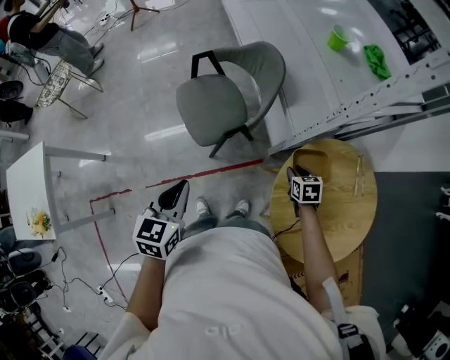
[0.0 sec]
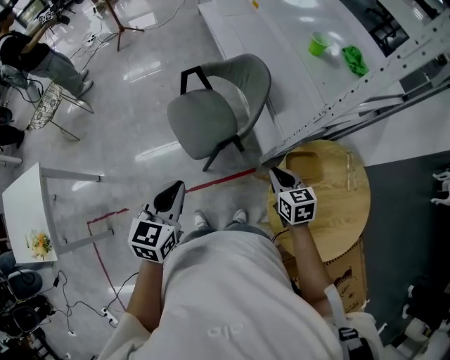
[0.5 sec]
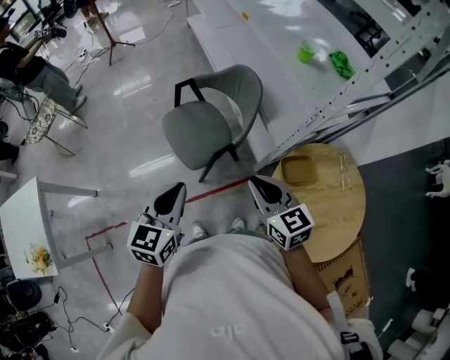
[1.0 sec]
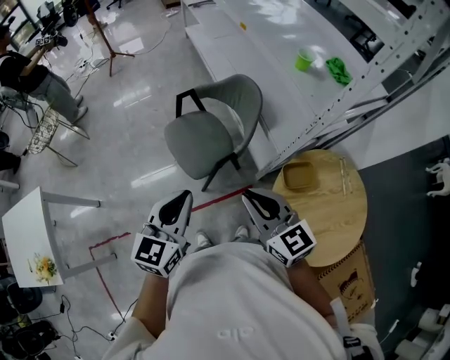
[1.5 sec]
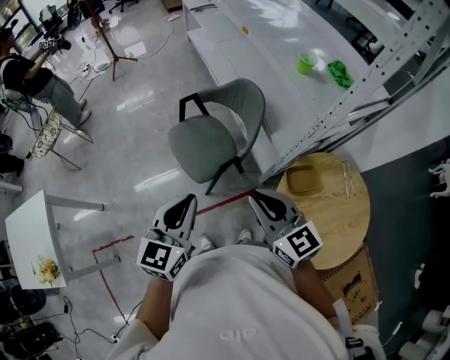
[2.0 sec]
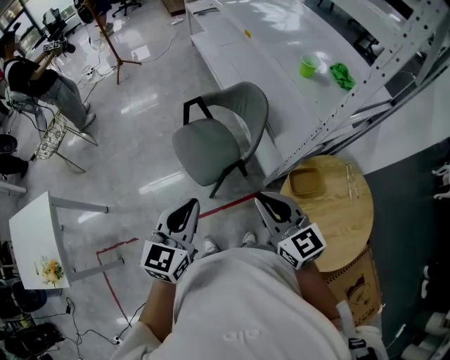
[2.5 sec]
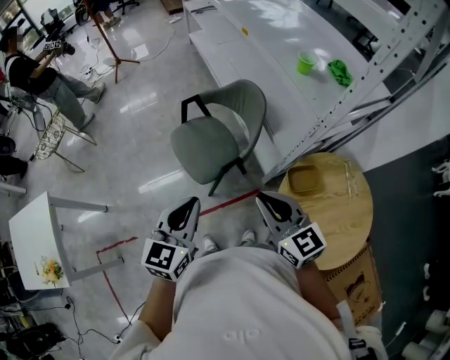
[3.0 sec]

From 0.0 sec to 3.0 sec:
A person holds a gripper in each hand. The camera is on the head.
From 0.0 sec to 1.5 sec: The right gripper heads upward and to the left, covering roughly 40 cm, tilts its fingers about 40 degrees upward, and closes its fingers; the left gripper is displaced upward by some 10 cm, and turns by some 20 degrees.
From 1.5 sec to 3.0 sec: The grippers move only a little.

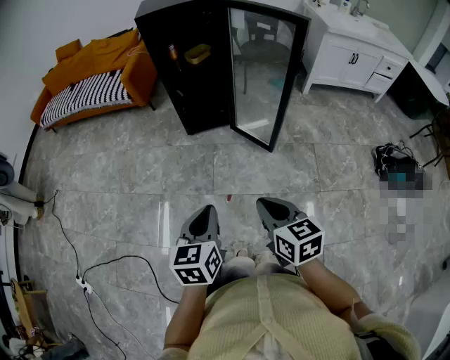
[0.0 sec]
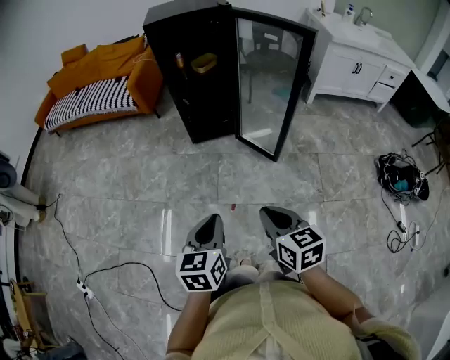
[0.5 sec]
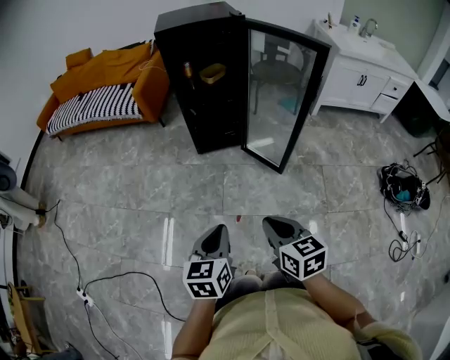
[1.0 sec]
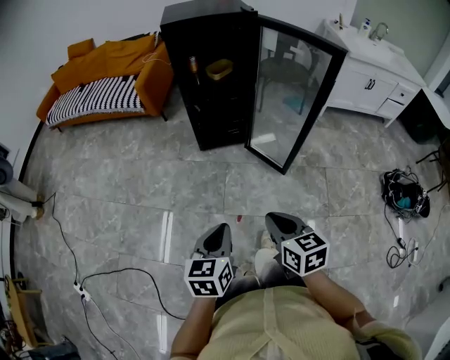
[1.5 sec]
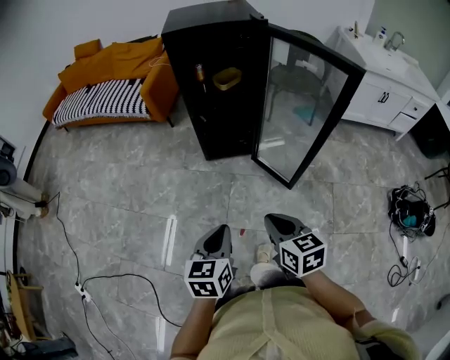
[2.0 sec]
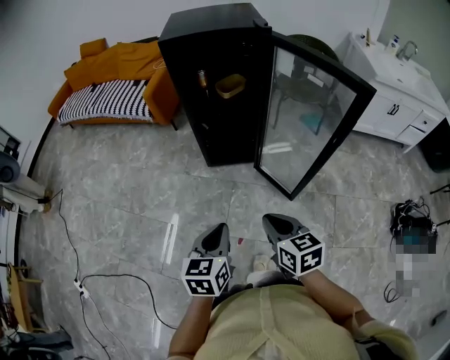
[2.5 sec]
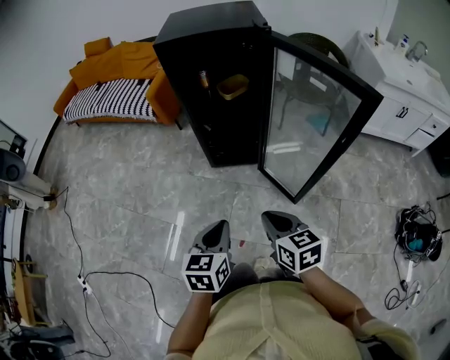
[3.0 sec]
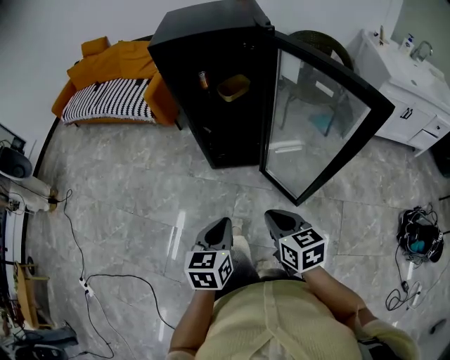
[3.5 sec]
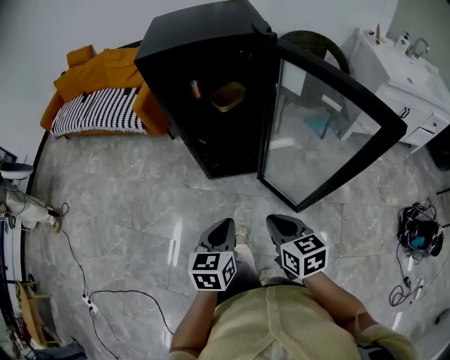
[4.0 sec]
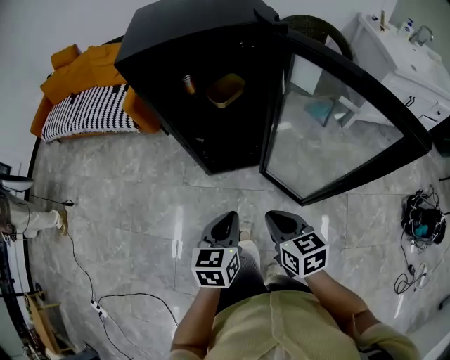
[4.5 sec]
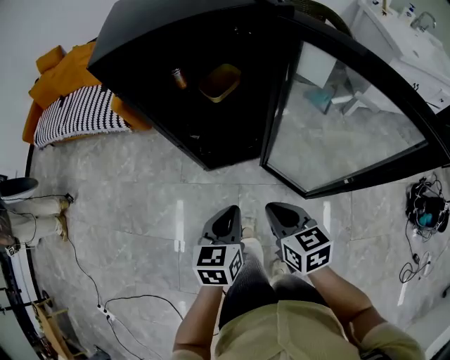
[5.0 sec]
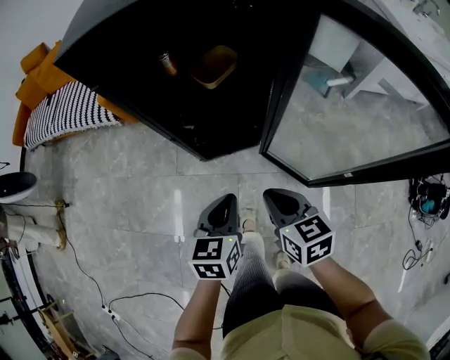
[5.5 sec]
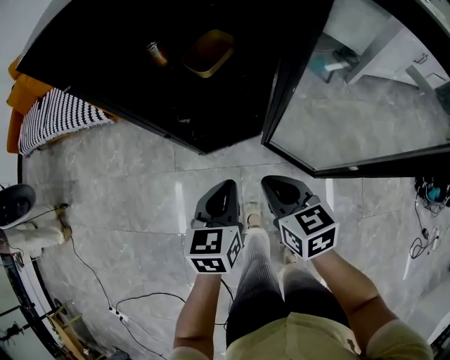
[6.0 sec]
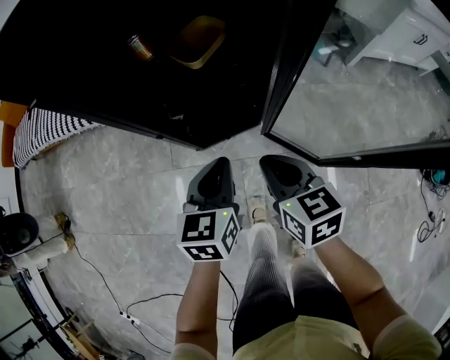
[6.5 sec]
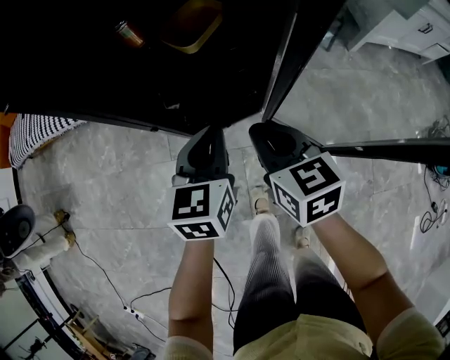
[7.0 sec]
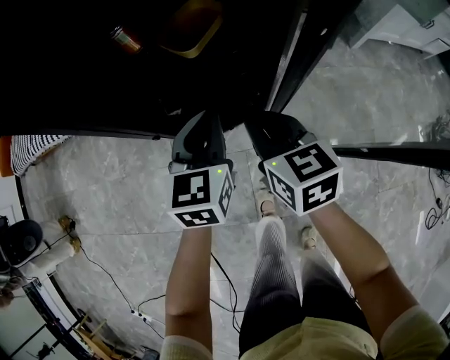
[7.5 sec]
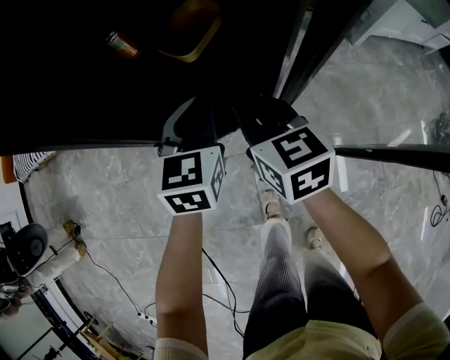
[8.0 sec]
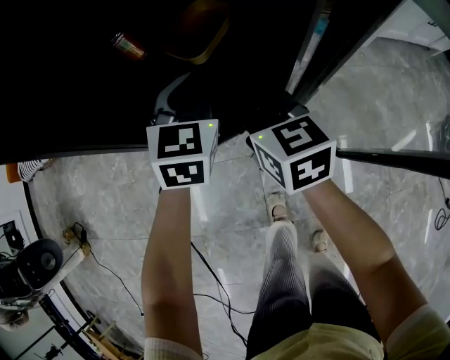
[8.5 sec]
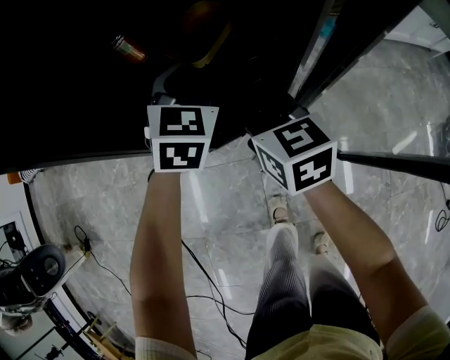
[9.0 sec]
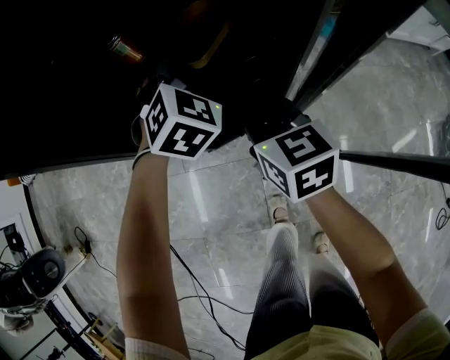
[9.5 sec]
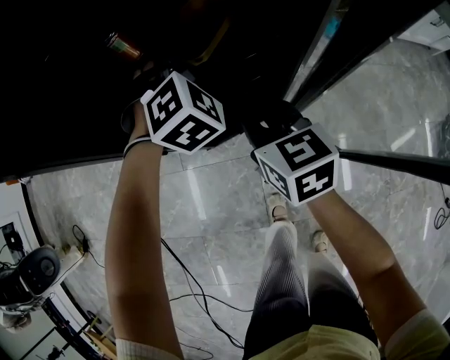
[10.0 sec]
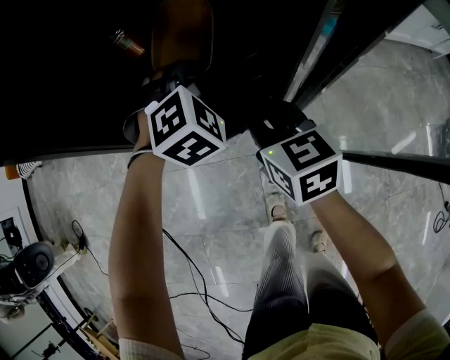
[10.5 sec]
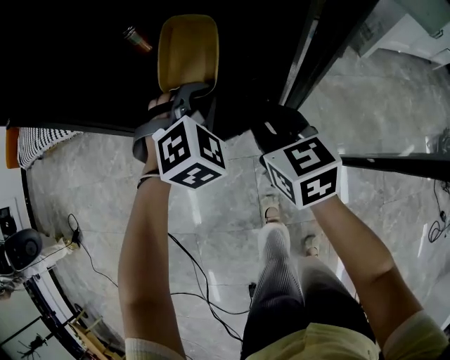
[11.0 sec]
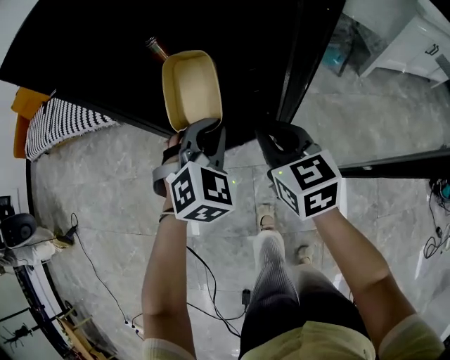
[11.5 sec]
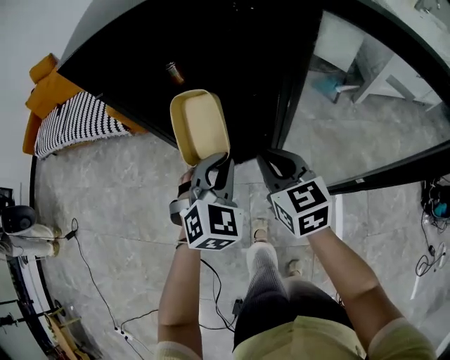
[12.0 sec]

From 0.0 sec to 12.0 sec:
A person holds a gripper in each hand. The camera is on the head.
From 0.0 sec to 2.0 sec: The grippers both shift forward by approximately 15 cm.
From 2.0 sec to 4.0 sec: Both grippers travel together forward, roughly 20 cm.
From 4.0 sec to 6.0 sec: Both grippers travel together forward and downward, about 20 cm.
From 6.0 sec to 8.0 sec: Both grippers move forward, about 20 cm.
From 8.0 sec to 10.0 sec: The left gripper travels forward by some 10 cm, twists some 60 degrees clockwise, seen from behind, and opens.
From 10.0 sec to 12.0 sec: The right gripper heads backward and upward, covering about 15 cm. Meanwhile the left gripper heads backward and upward, covering approximately 25 cm, turns by roughly 30 degrees, and closes up.

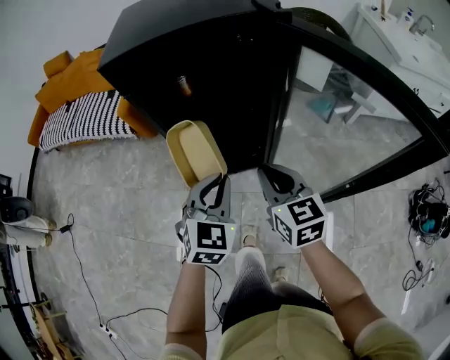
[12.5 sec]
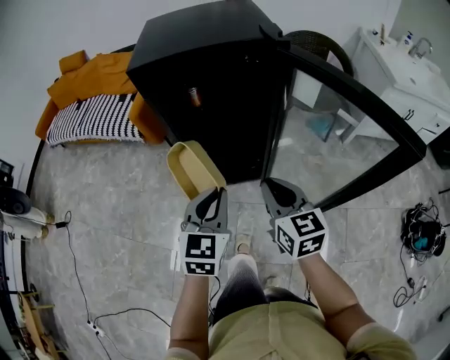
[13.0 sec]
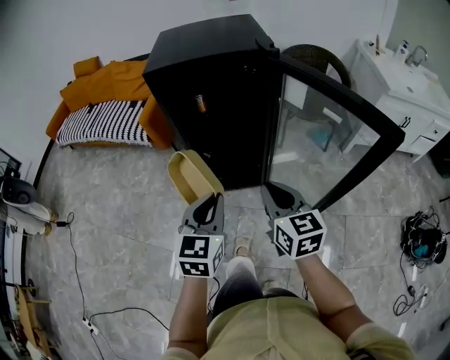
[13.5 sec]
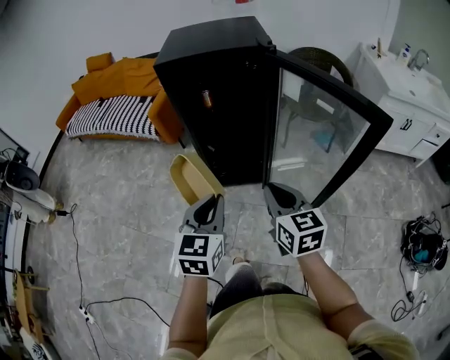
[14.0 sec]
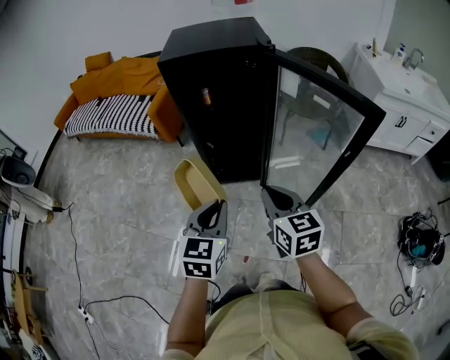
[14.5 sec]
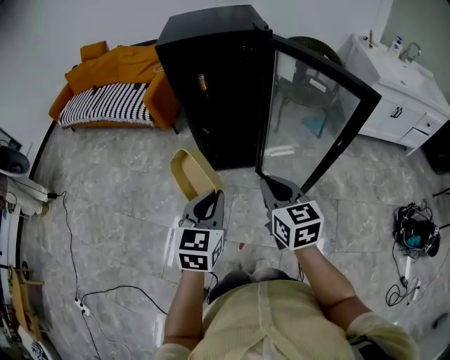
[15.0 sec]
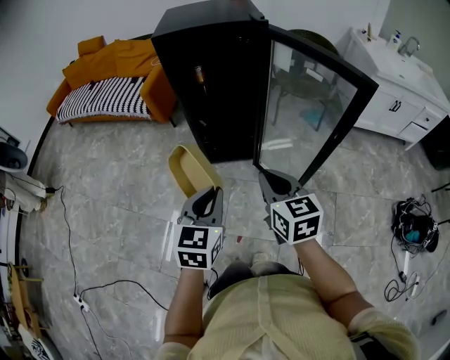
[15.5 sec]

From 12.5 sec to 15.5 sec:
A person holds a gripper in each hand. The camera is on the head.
From 12.5 sec to 14.0 sec: The grippers both shift backward and upward by some 15 cm. The left gripper rotates about 20 degrees.
From 14.0 sec to 15.5 sec: Both grippers travel together backward, about 10 cm.

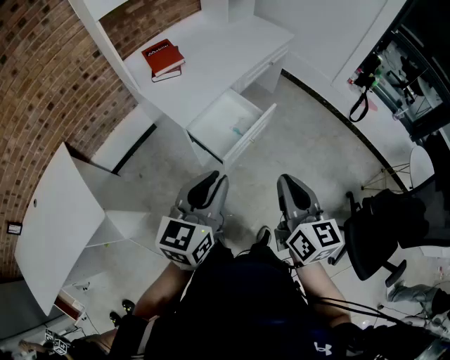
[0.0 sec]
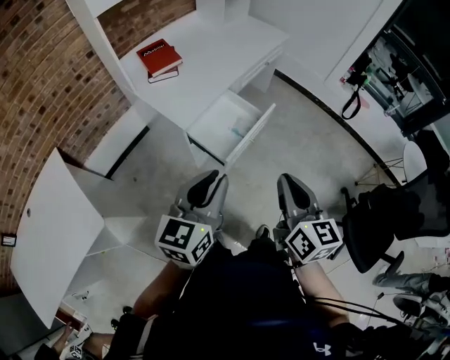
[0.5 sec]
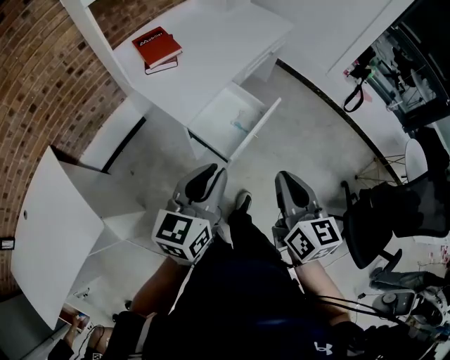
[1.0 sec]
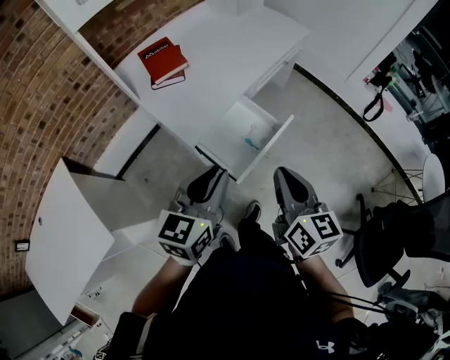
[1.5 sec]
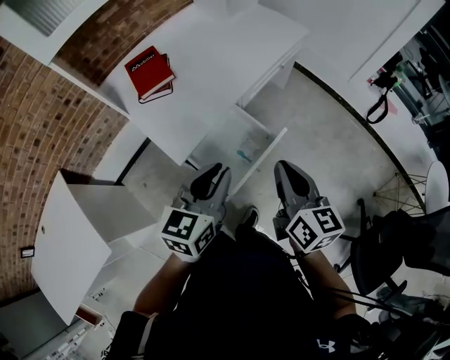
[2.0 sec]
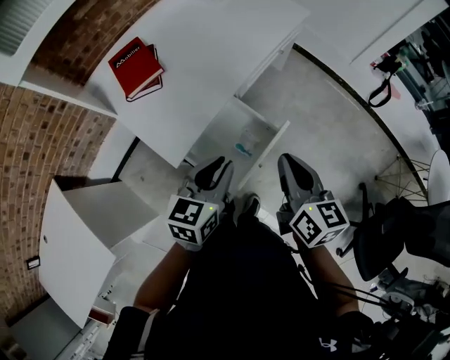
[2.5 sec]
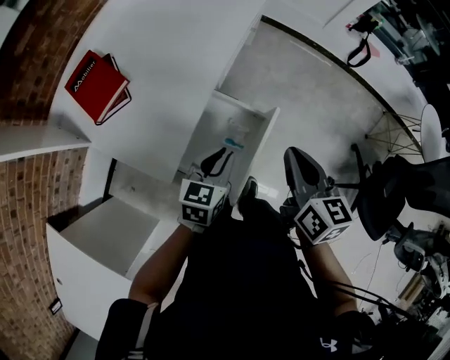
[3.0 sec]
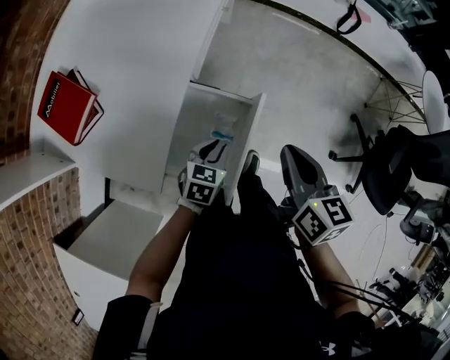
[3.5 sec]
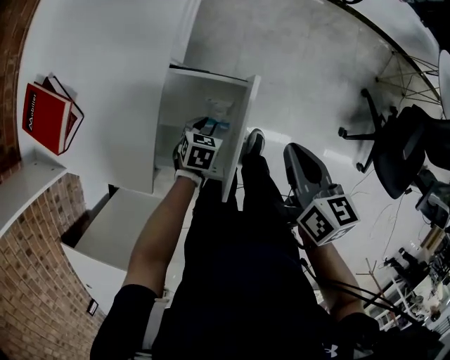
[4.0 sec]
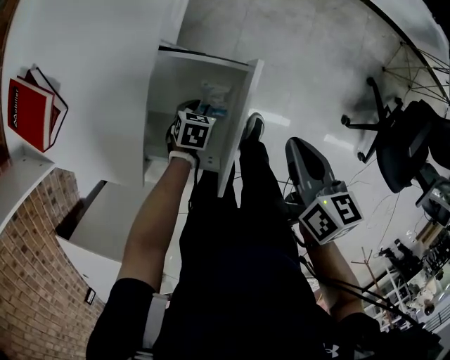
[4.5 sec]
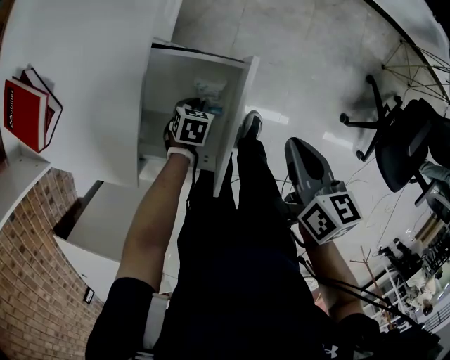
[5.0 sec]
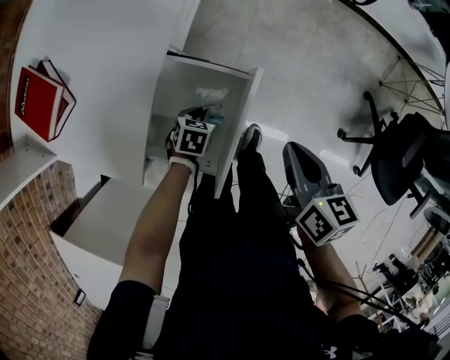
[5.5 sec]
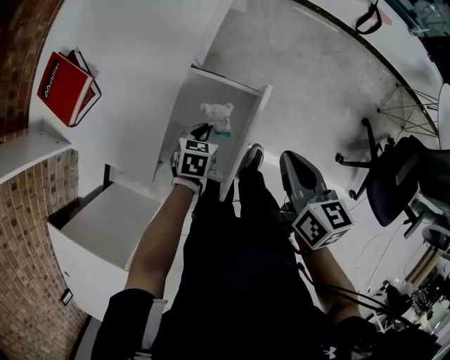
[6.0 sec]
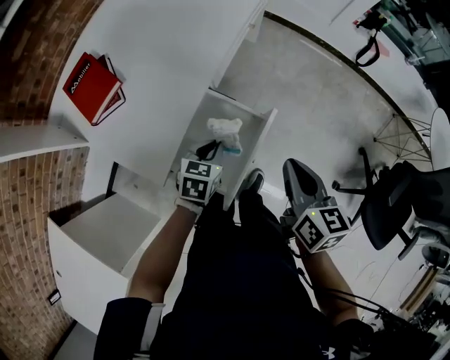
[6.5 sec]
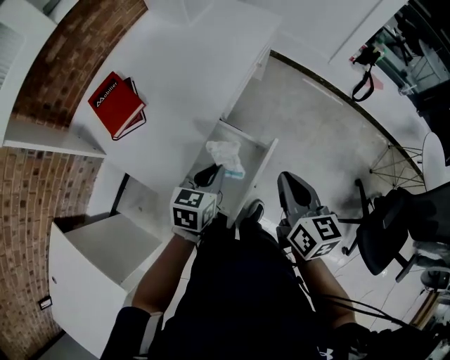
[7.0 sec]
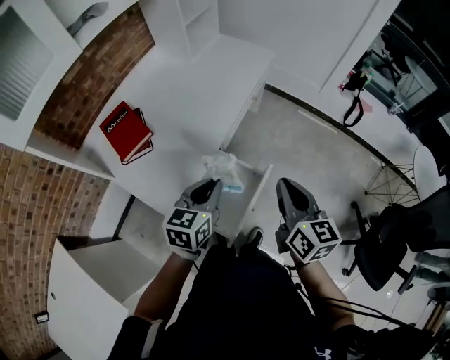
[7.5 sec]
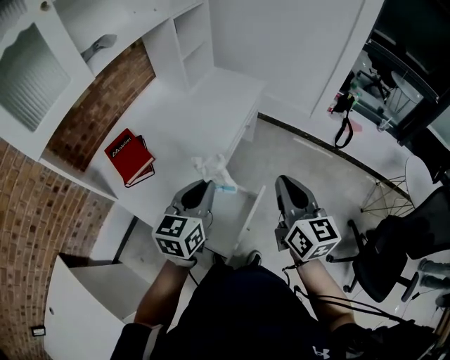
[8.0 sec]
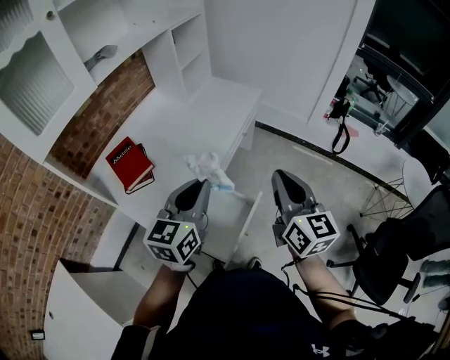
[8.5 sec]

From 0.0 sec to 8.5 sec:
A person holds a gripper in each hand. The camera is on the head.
From 0.0 sec to 2.0 sec: Both grippers move forward, approximately 25 cm.
From 2.0 sec to 4.0 sec: The left gripper heads downward, covering about 40 cm, and tilts its fingers roughly 40 degrees downward, while the right gripper shifts roughly 20 cm downward, and turns by about 40 degrees.
From 4.0 sec to 6.5 sec: The left gripper travels upward by roughly 15 cm, swivels roughly 20 degrees, and closes. Meanwhile the right gripper shifts some 5 cm upward.
From 6.5 sec to 8.5 sec: The right gripper is displaced upward by some 25 cm, and rotates about 30 degrees. The left gripper moves upward, some 35 cm, and points its fingers some 40 degrees further upward.
